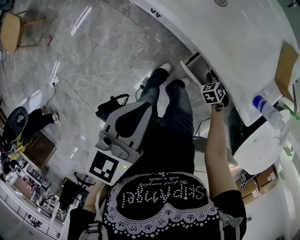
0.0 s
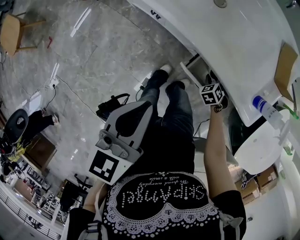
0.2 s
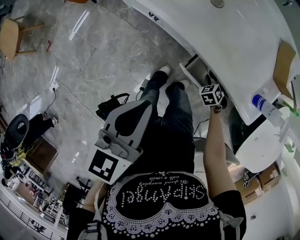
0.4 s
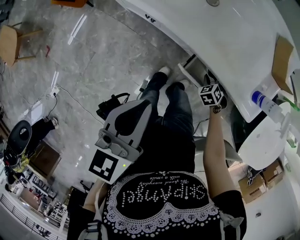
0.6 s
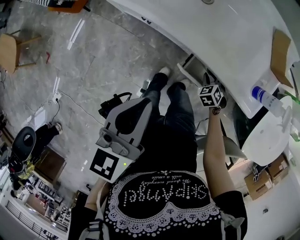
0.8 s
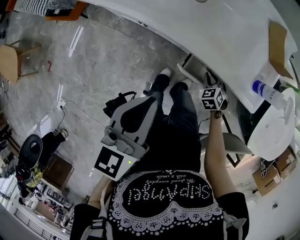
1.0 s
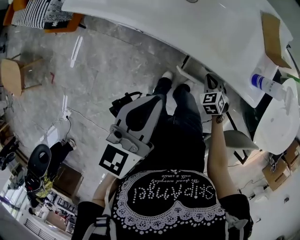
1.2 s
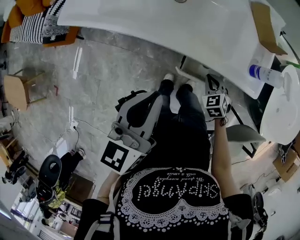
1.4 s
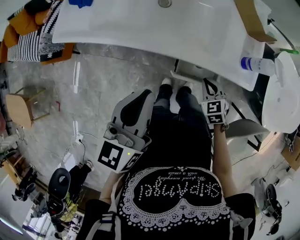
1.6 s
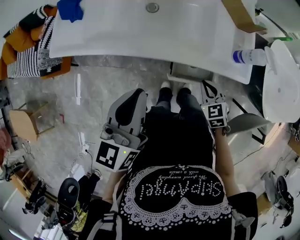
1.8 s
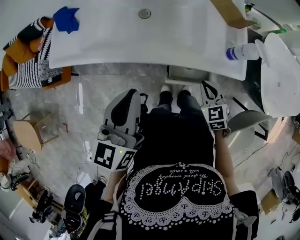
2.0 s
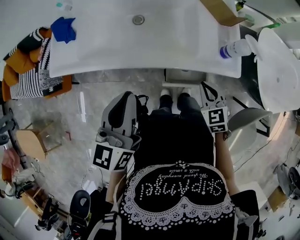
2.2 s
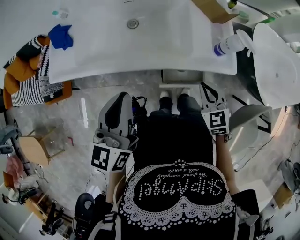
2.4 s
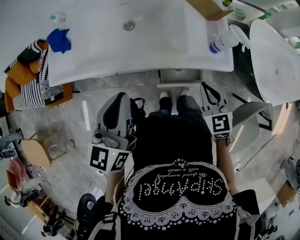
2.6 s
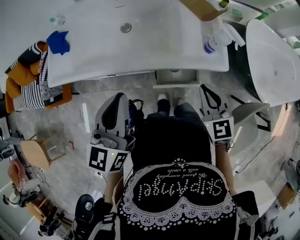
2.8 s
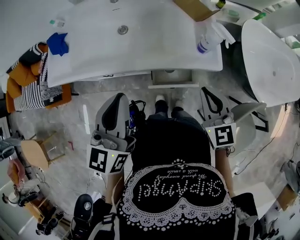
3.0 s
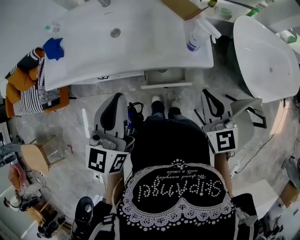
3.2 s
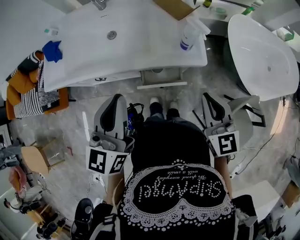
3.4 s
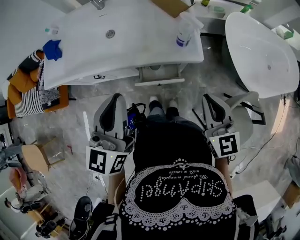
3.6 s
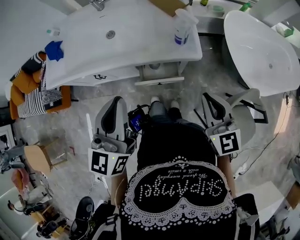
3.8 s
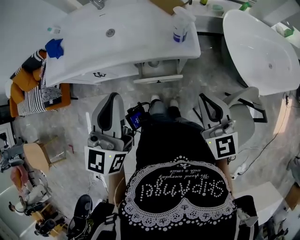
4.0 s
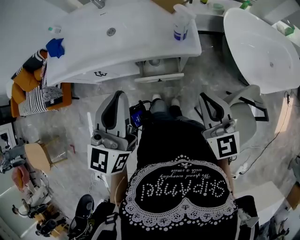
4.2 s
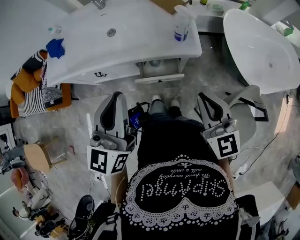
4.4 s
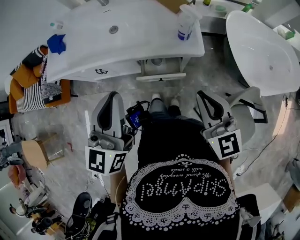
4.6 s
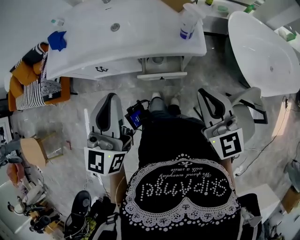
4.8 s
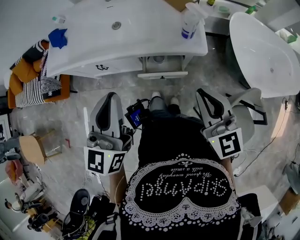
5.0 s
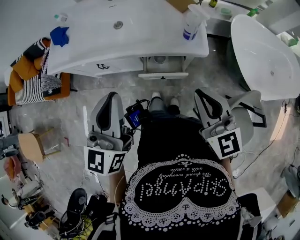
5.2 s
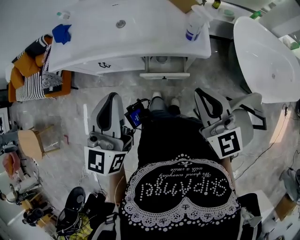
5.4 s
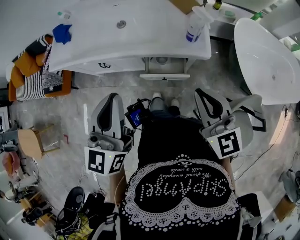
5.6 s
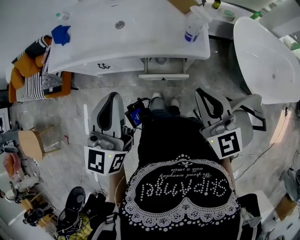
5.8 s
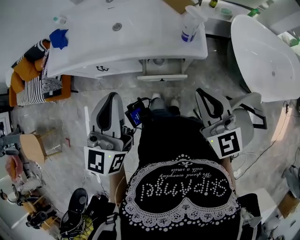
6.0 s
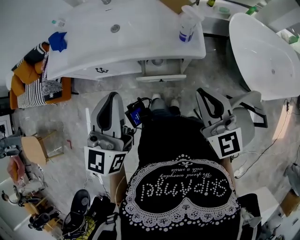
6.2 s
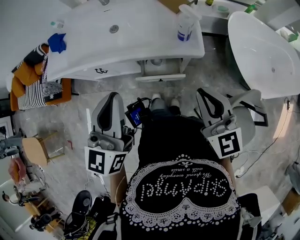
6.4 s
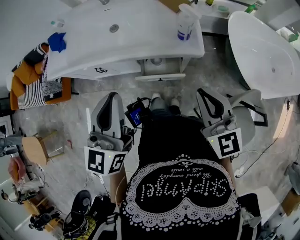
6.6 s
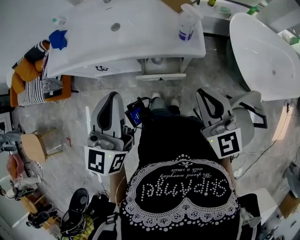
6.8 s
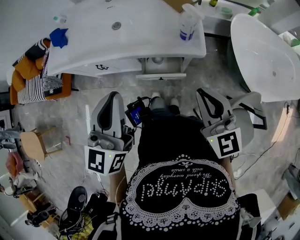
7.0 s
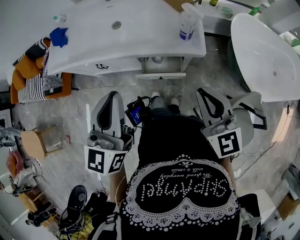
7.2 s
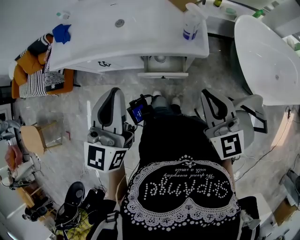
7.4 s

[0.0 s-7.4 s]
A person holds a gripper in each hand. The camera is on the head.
0.0 to 1.4 s: The right gripper goes some 10 cm upward, and rotates about 30 degrees; the left gripper changes place by roughly 5 cm, and rotates about 20 degrees.
1.4 to 3.0 s: The right gripper moves upward, roughly 25 cm, and angles its fingers upward, by some 40 degrees, while the left gripper shifts approximately 10 cm to the right and upward.
3.0 to 4.4 s: The right gripper goes some 15 cm backward, to the right and upward; the left gripper travels backward and to the right by roughly 10 cm.
4.4 to 7.4 s: The grippers stay close to where they were, moving slightly.

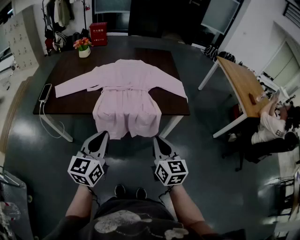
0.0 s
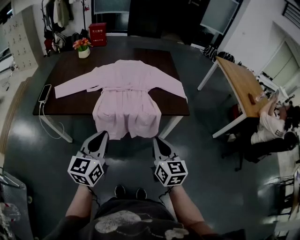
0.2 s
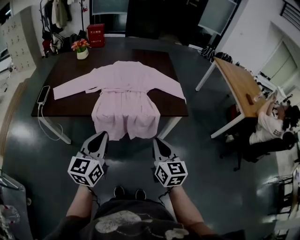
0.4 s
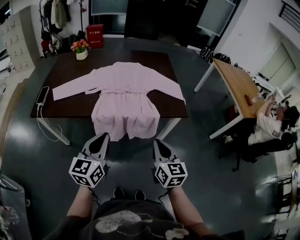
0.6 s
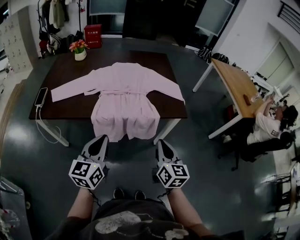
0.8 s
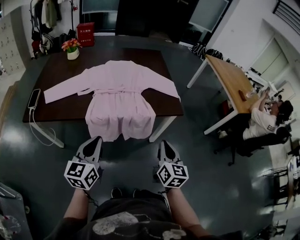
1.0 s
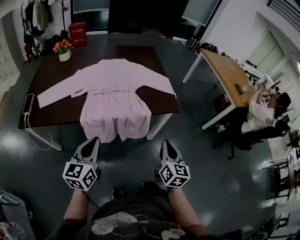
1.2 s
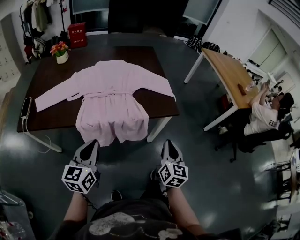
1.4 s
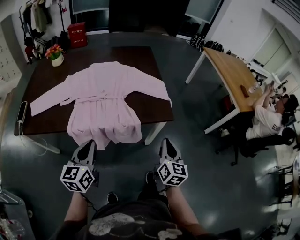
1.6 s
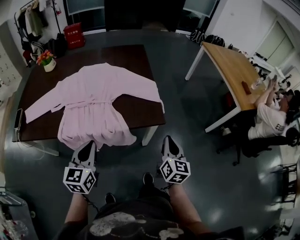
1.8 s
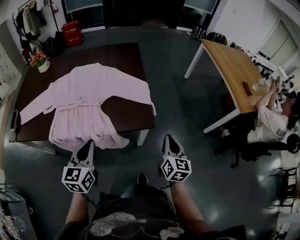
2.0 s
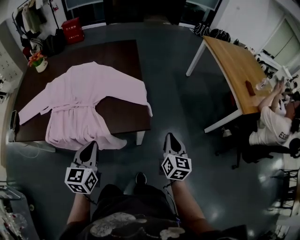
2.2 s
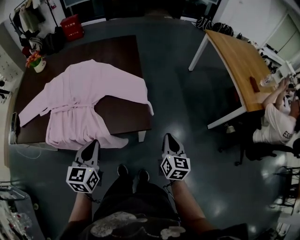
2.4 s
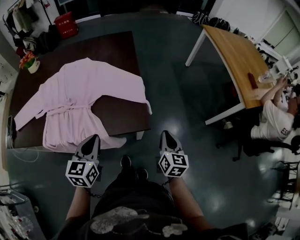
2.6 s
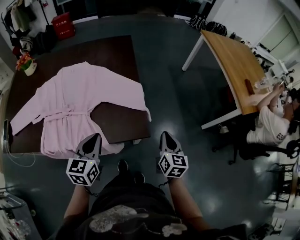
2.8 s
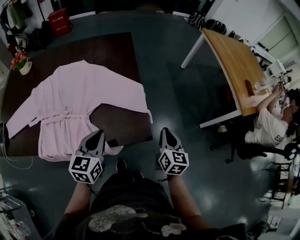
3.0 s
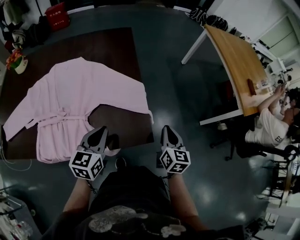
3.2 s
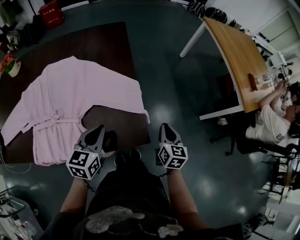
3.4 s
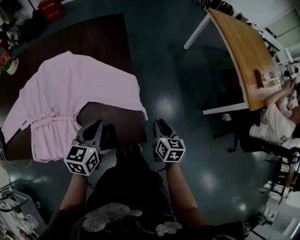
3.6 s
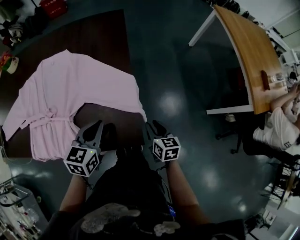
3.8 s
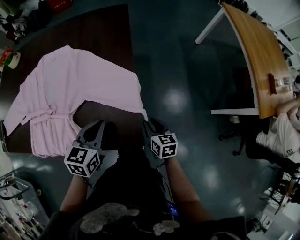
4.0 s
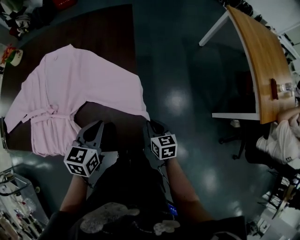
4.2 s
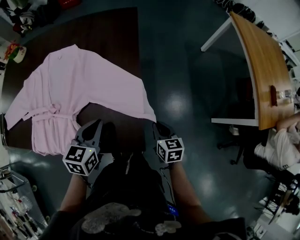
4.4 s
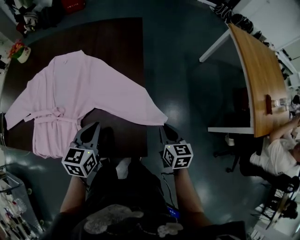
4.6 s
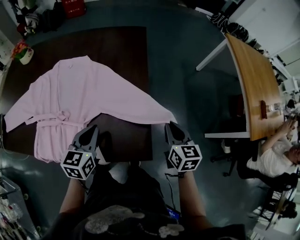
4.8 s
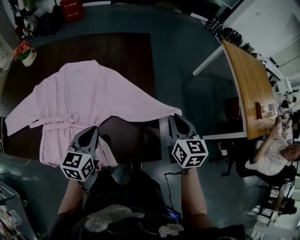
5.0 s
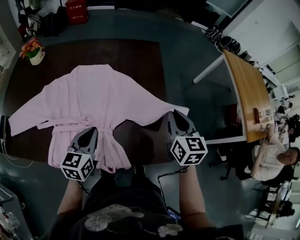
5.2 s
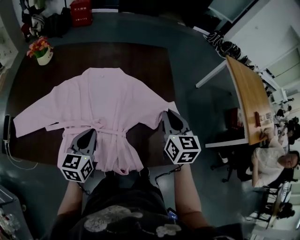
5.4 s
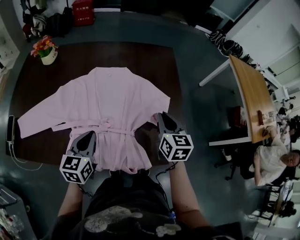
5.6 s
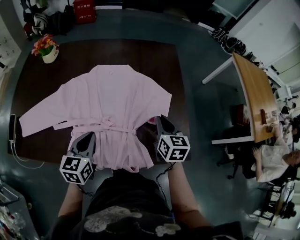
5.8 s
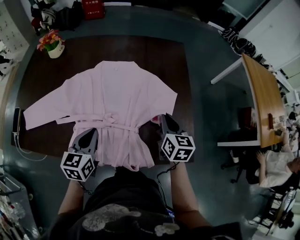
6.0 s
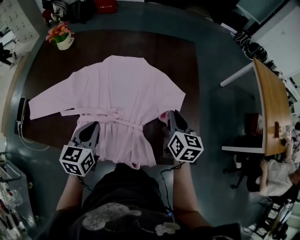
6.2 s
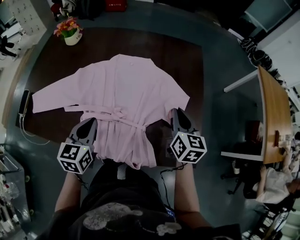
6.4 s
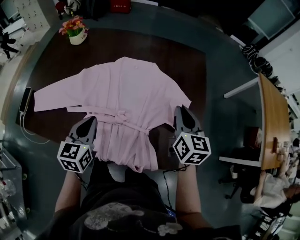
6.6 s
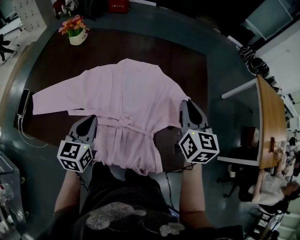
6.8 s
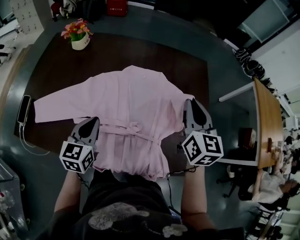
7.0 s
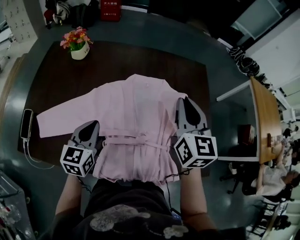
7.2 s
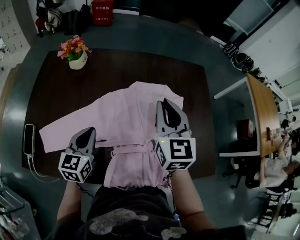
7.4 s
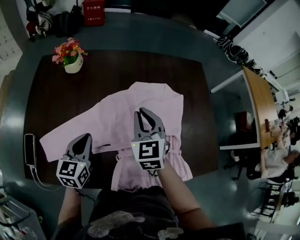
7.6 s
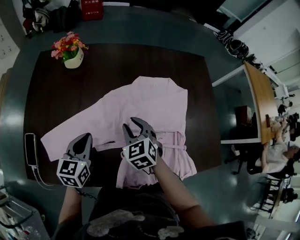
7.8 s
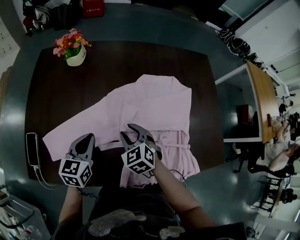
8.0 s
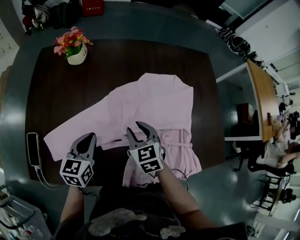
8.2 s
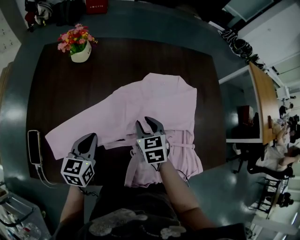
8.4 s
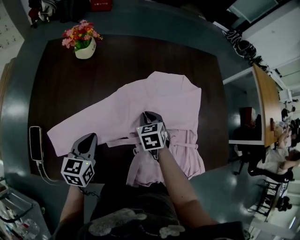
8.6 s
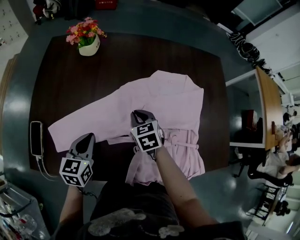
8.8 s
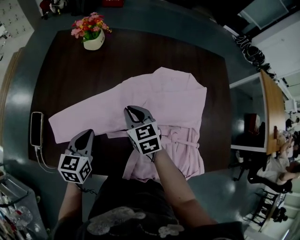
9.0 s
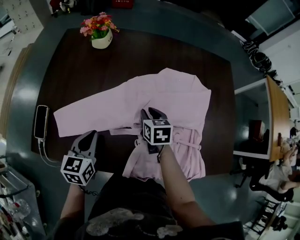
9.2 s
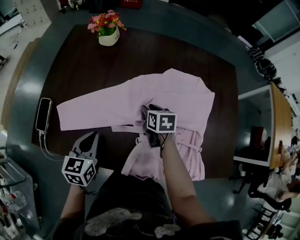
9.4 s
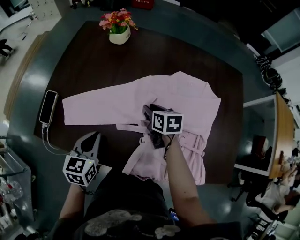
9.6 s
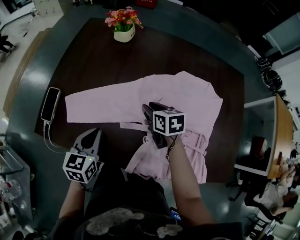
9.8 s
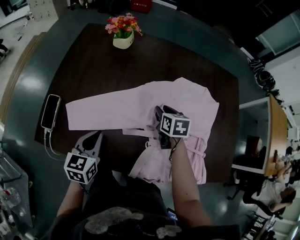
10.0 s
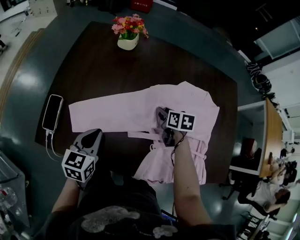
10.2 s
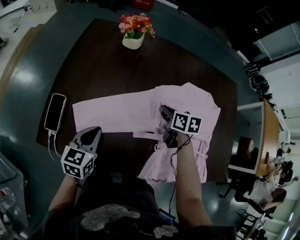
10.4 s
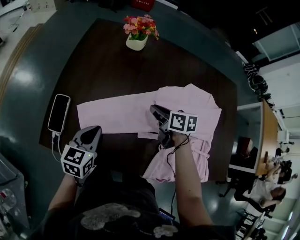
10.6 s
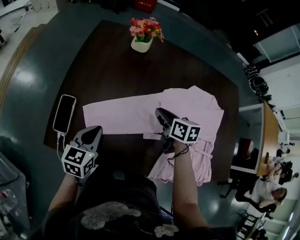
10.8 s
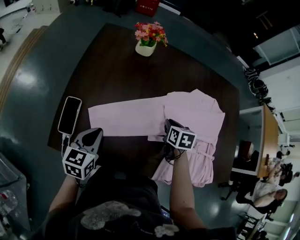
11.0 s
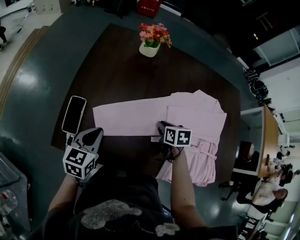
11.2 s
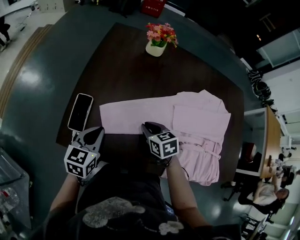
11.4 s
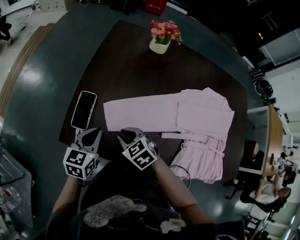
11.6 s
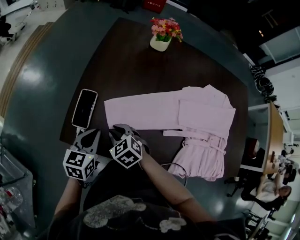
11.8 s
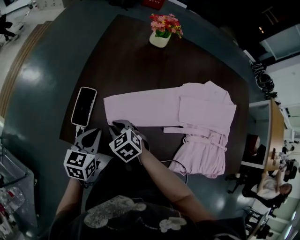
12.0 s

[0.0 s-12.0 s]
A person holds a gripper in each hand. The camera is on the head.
0.0 to 1.6 s: The left gripper moves forward and downward, roughly 10 cm. The right gripper heads to the right and forward, covering some 20 cm, and changes its angle by roughly 20 degrees.
1.6 to 3.0 s: The two grippers go roughly 30 cm forward and to the right.
3.0 to 4.4 s: The right gripper shifts about 15 cm downward and forward, turns by roughly 30 degrees, and opens and closes again, while the left gripper heads forward and downward, covering roughly 10 cm.
4.4 to 6.0 s: The right gripper goes roughly 30 cm to the left and upward. Meanwhile the left gripper goes approximately 30 cm to the left.
6.0 to 7.6 s: The grippers both shift to the left by about 30 cm. The right gripper swivels about 30 degrees.
7.6 to 9.0 s: The right gripper moves downward and to the left, approximately 15 cm, swivels some 30 degrees, and opens and closes again. The left gripper travels to the left and downward by approximately 10 cm.
9.0 to 10.4 s: The right gripper goes left and right, some 5 cm each way, reversing 3 times, turns by about 30 degrees, and opens and closes again. Meanwhile the left gripper is displaced to the left by some 10 cm.
10.4 to 12.0 s: The left gripper shifts by roughly 15 cm, while the right gripper ends up about 40 cm from where it was, and rotates around the line of its fingers by approximately 50 degrees, counterclockwise from behind.

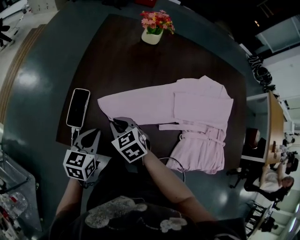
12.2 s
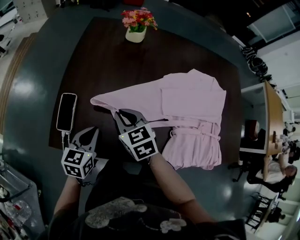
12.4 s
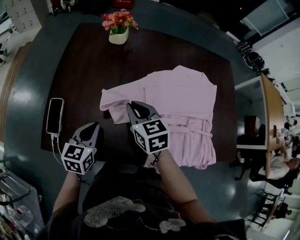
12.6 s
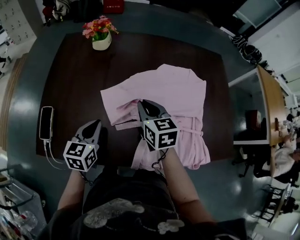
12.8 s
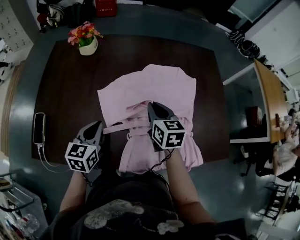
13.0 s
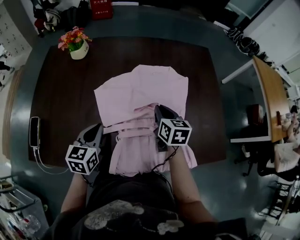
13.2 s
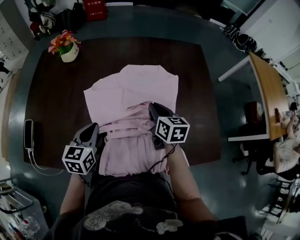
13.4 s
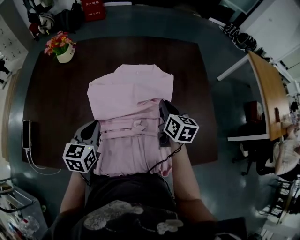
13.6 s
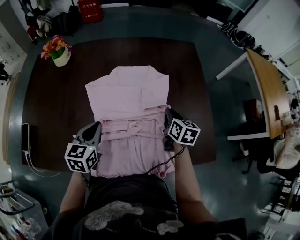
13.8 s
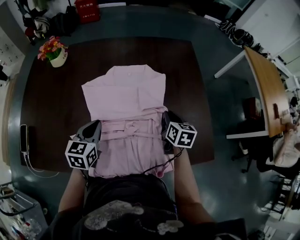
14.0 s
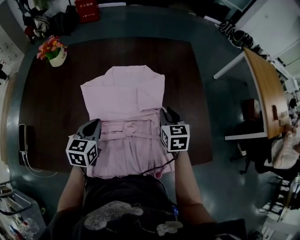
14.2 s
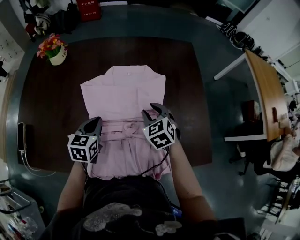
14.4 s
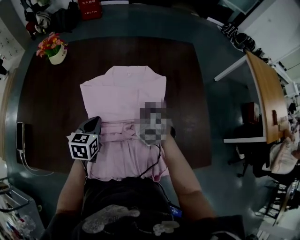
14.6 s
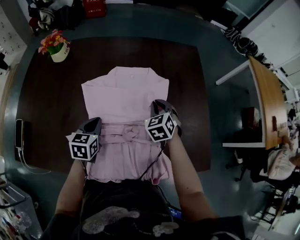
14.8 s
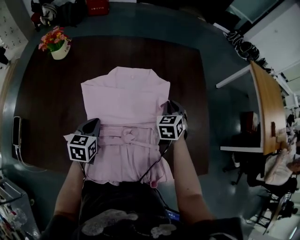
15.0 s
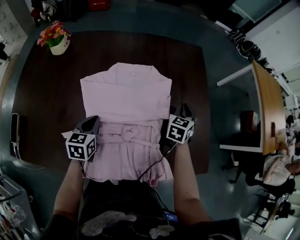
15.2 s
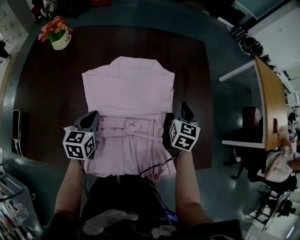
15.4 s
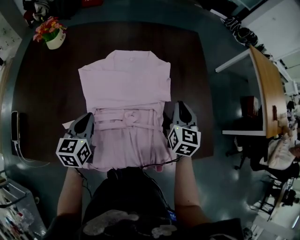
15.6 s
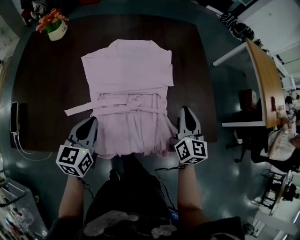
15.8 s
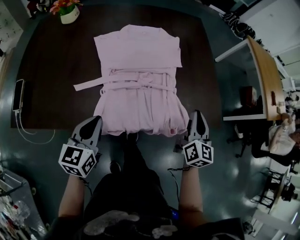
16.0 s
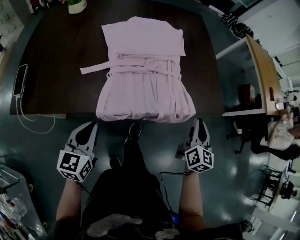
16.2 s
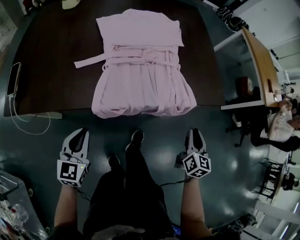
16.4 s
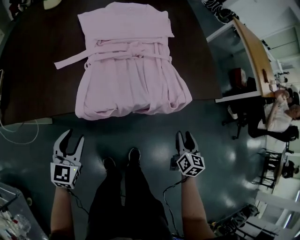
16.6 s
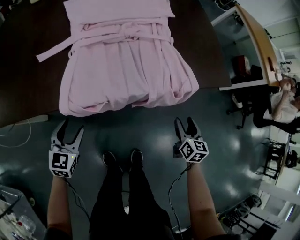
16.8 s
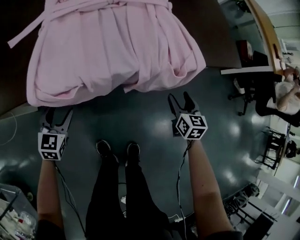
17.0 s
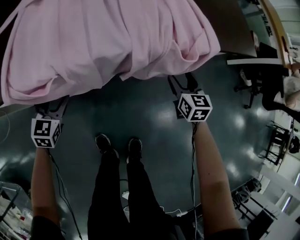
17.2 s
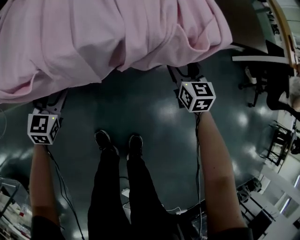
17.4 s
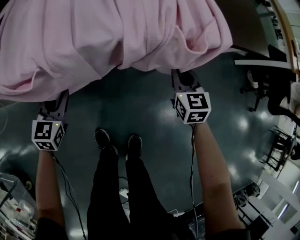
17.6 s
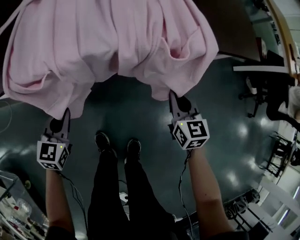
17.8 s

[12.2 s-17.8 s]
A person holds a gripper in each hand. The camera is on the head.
12.2 to 13.6 s: The pair of grippers is taken to the right, about 50 cm. The right gripper changes its angle by approximately 60 degrees.
13.6 to 15.0 s: The right gripper moves left and right over roughly 10 cm, changing direction 2 times, and rolls counterclockwise, seen from behind, by some 40 degrees, while the left gripper is displaced downward by about 5 cm.
15.0 to 16.4 s: The grippers both shift backward by some 40 cm. The right gripper twists approximately 40 degrees clockwise, seen from behind.
16.4 to 17.8 s: Both grippers travel together downward, some 25 cm. The left gripper opens and closes again; the right gripper changes its angle by roughly 20 degrees, and opens, then closes once more.
